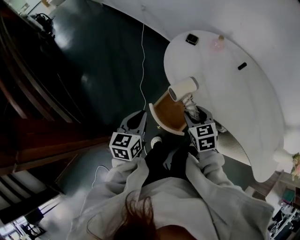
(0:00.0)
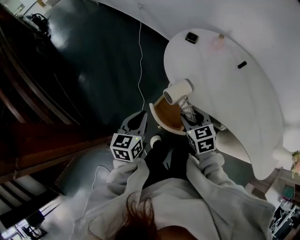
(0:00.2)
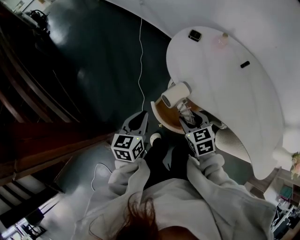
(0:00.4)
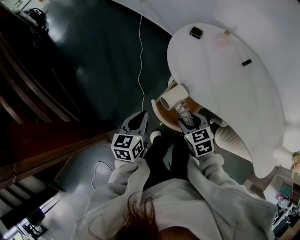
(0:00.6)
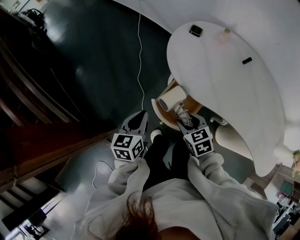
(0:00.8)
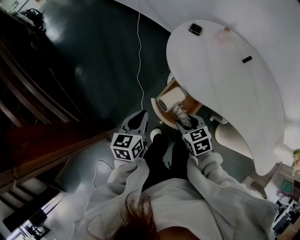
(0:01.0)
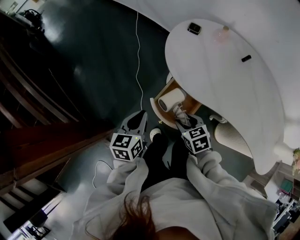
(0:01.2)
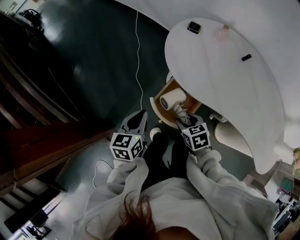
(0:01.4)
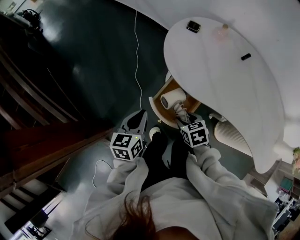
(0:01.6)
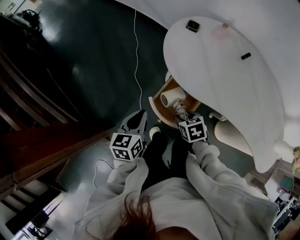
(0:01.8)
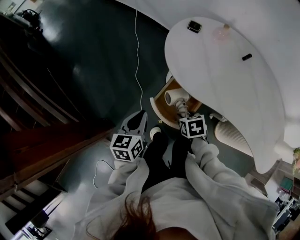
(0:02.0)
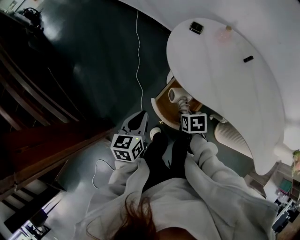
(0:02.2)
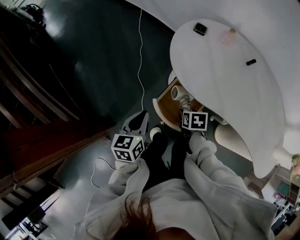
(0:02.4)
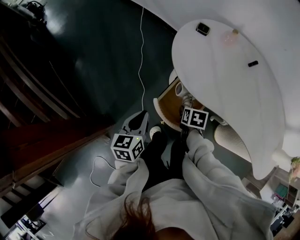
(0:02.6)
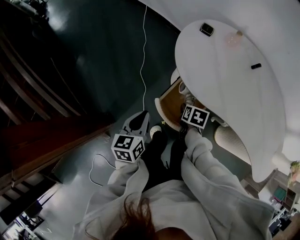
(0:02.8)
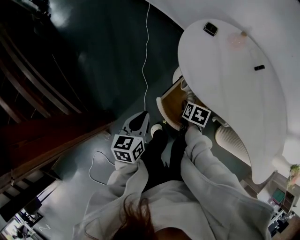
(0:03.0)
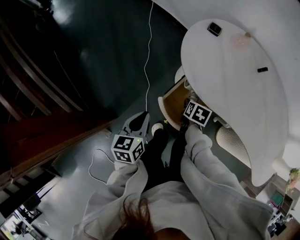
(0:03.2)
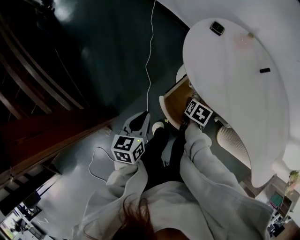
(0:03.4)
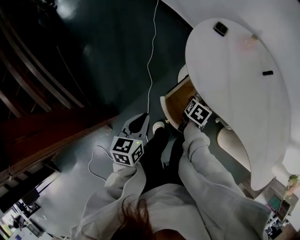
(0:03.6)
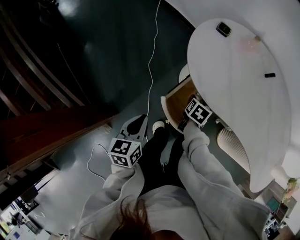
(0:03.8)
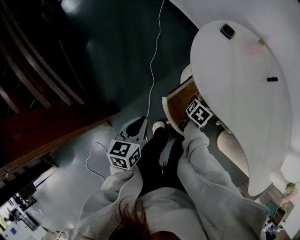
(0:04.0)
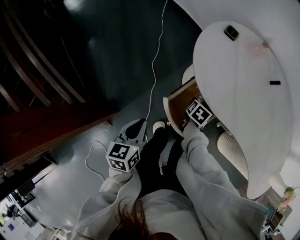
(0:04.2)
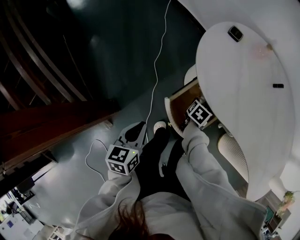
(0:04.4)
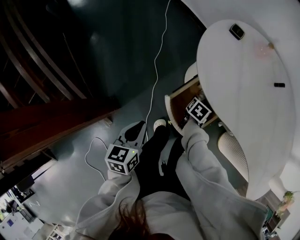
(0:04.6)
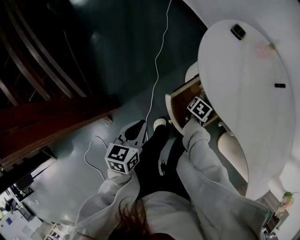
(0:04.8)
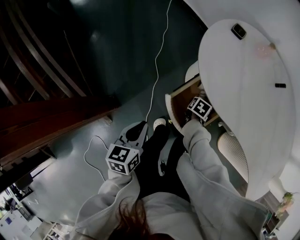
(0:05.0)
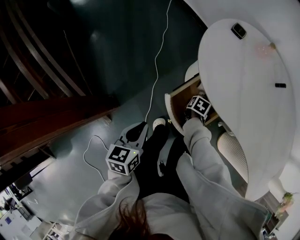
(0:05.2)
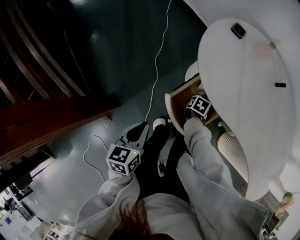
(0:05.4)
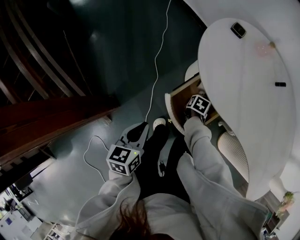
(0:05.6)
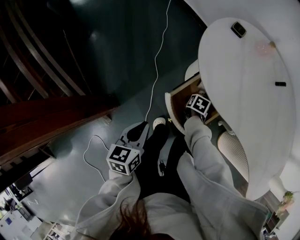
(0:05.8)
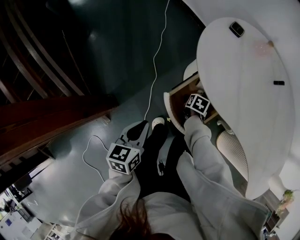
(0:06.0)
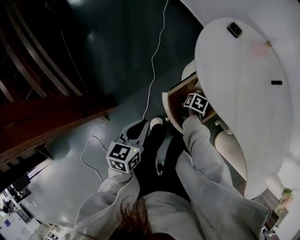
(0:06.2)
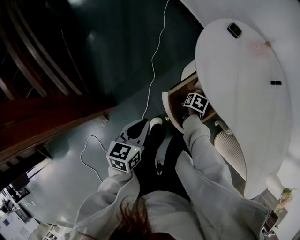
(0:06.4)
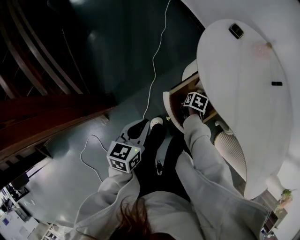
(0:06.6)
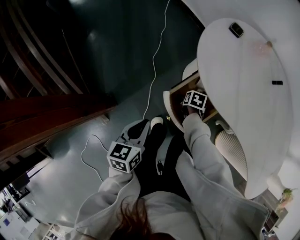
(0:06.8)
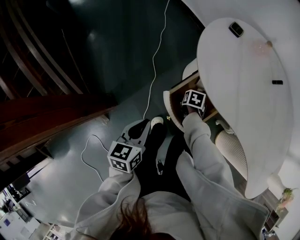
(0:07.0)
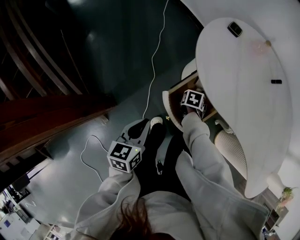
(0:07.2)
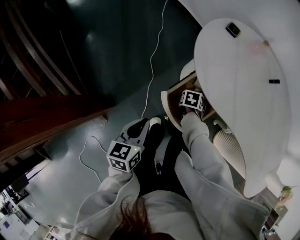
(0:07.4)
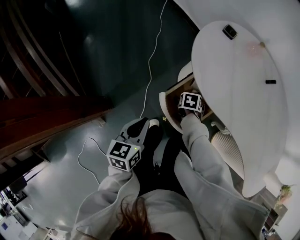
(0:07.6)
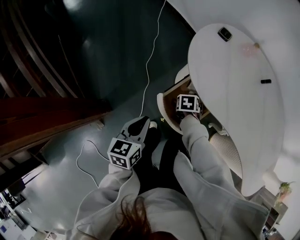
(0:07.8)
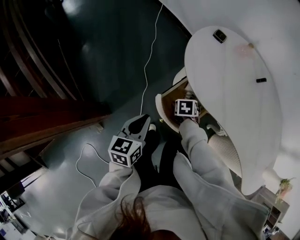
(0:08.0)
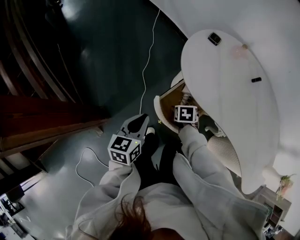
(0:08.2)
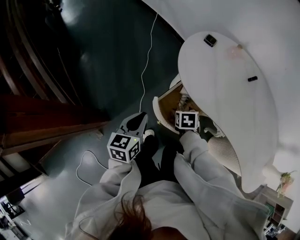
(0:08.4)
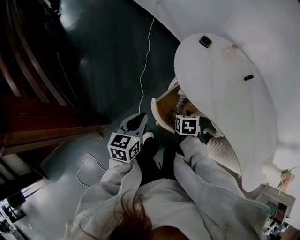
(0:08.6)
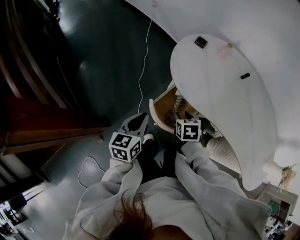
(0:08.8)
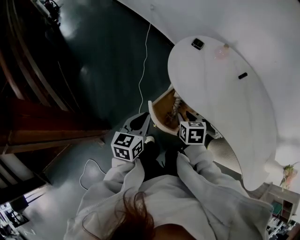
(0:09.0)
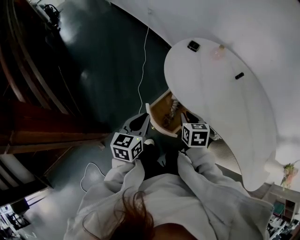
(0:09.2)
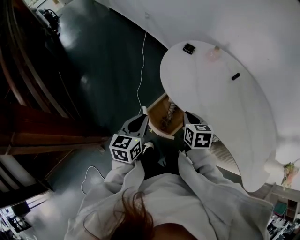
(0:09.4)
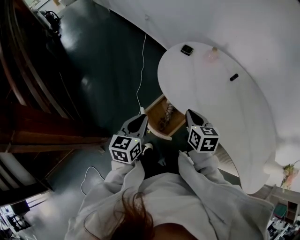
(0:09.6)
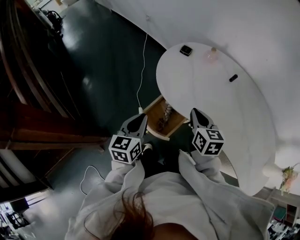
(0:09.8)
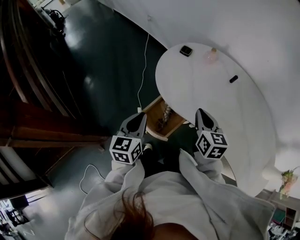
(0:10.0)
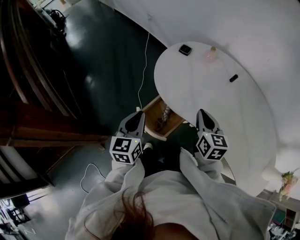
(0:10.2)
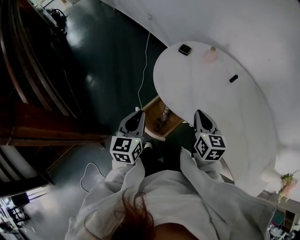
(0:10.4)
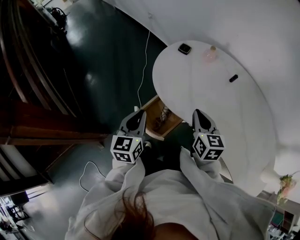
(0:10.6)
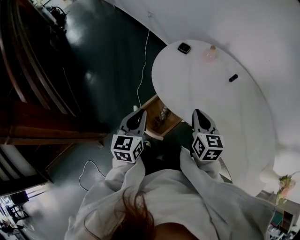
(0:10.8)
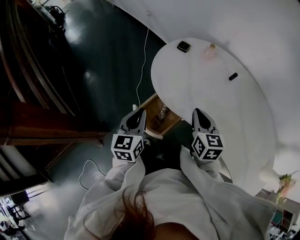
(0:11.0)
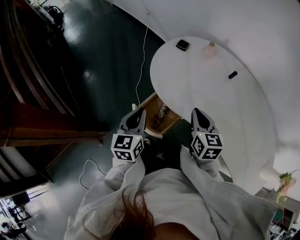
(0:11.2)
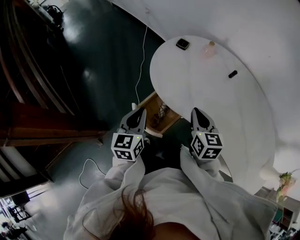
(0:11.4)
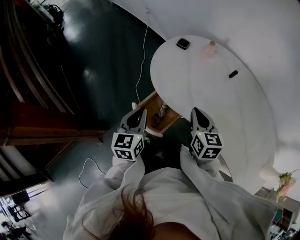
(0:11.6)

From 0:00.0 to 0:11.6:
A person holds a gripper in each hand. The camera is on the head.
From 0:00.0 to 0:01.4: The right gripper heads downward, covering roughly 10 cm.
From 0:01.4 to 0:02.8: The right gripper travels forward and downward by approximately 10 cm, and changes its angle by roughly 40 degrees.
From 0:02.8 to 0:04.4: The left gripper ends up some 5 cm from where it was. Meanwhile the right gripper is displaced downward and forward by approximately 10 cm.
From 0:04.4 to 0:05.8: The right gripper moves downward, approximately 5 cm.
From 0:05.8 to 0:07.2: The right gripper opens.
From 0:07.2 to 0:08.8: The left gripper goes approximately 5 cm upward, while the right gripper heads upward, covering approximately 20 cm, changes its angle by some 20 degrees, and closes.
From 0:08.8 to 0:10.2: The left gripper heads to the right and upward, covering some 10 cm. The right gripper heads upward and to the right, covering some 20 cm, and tilts its fingers roughly 30 degrees upward.
From 0:10.2 to 0:11.6: The grippers make only small movements.

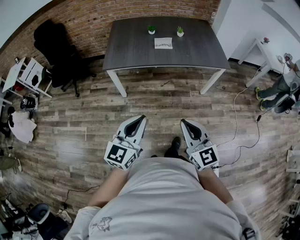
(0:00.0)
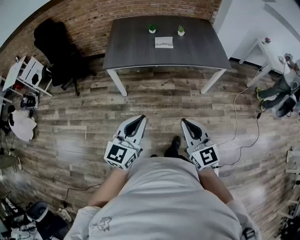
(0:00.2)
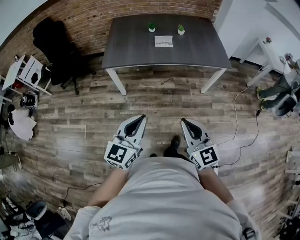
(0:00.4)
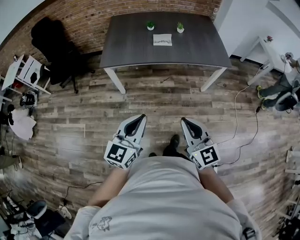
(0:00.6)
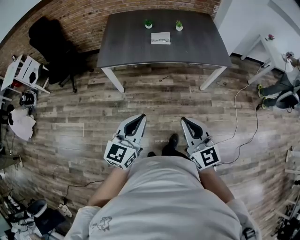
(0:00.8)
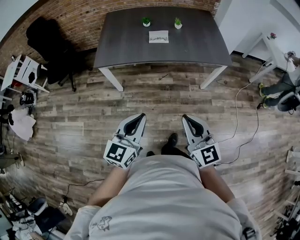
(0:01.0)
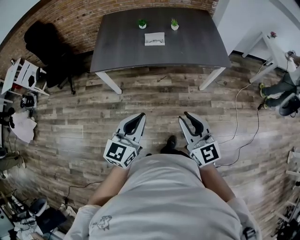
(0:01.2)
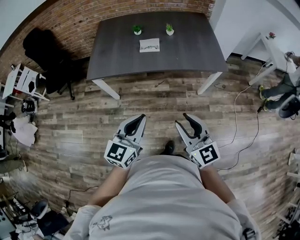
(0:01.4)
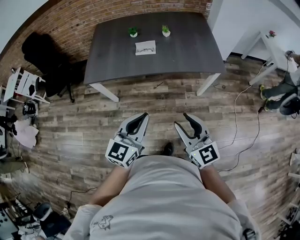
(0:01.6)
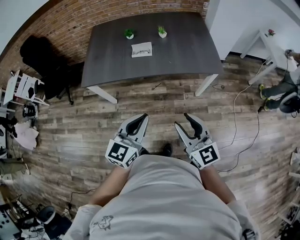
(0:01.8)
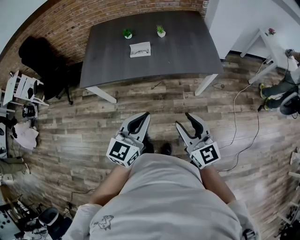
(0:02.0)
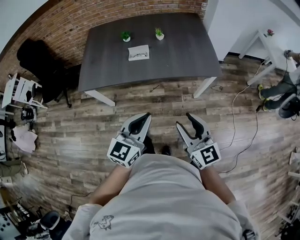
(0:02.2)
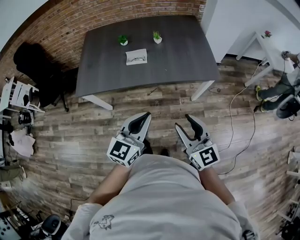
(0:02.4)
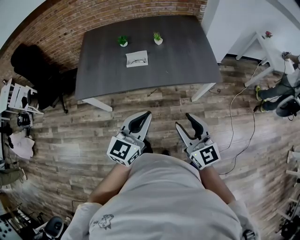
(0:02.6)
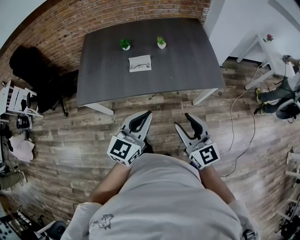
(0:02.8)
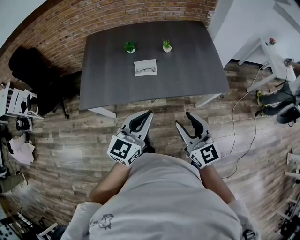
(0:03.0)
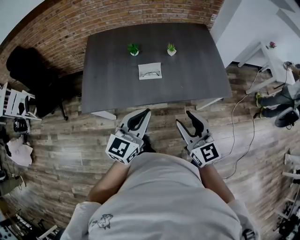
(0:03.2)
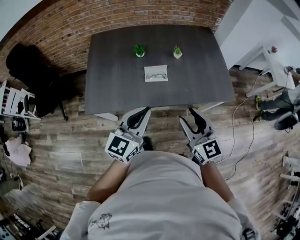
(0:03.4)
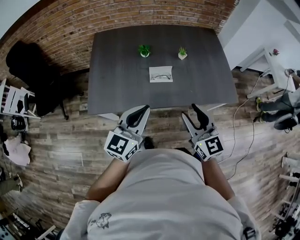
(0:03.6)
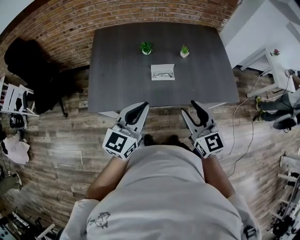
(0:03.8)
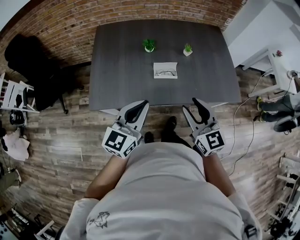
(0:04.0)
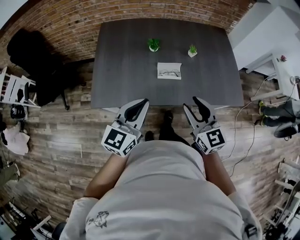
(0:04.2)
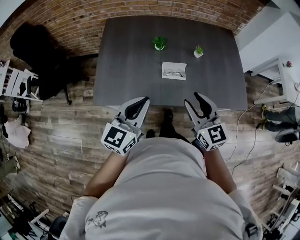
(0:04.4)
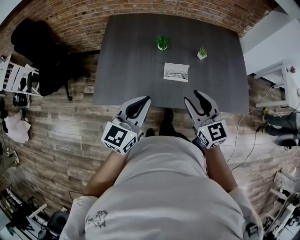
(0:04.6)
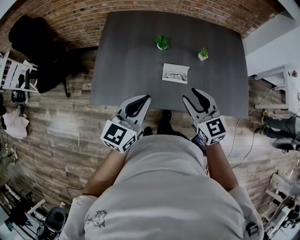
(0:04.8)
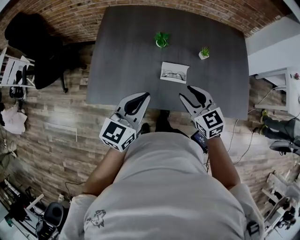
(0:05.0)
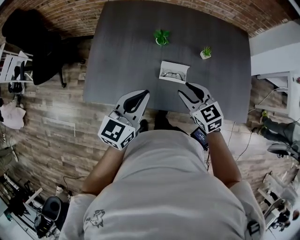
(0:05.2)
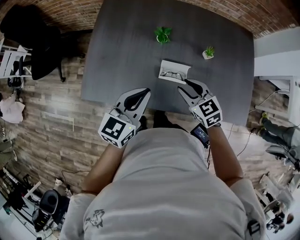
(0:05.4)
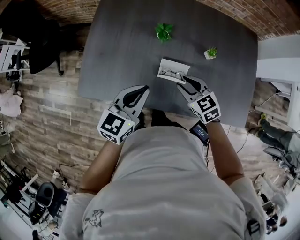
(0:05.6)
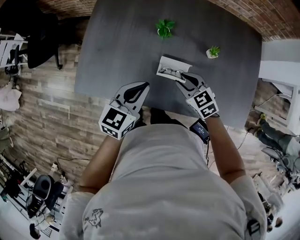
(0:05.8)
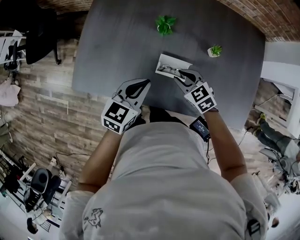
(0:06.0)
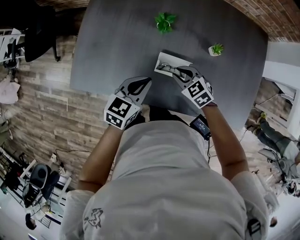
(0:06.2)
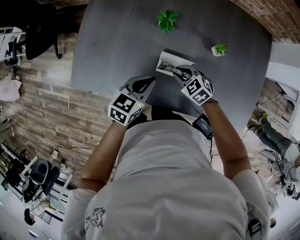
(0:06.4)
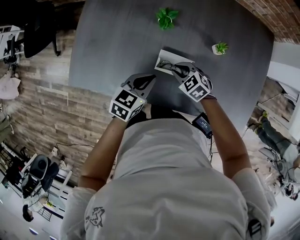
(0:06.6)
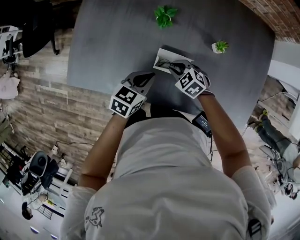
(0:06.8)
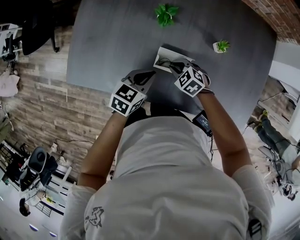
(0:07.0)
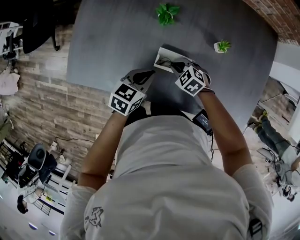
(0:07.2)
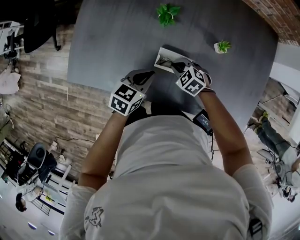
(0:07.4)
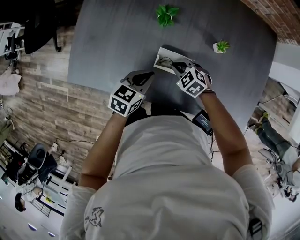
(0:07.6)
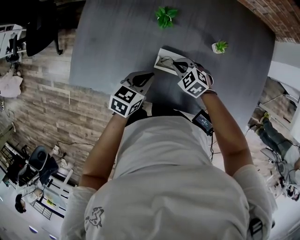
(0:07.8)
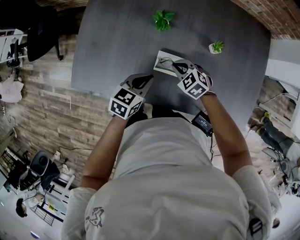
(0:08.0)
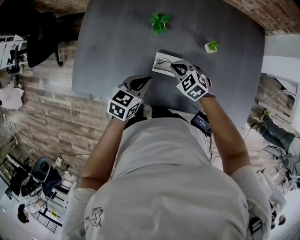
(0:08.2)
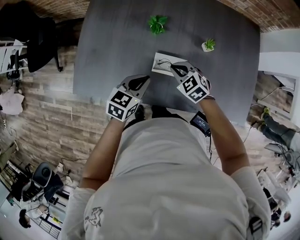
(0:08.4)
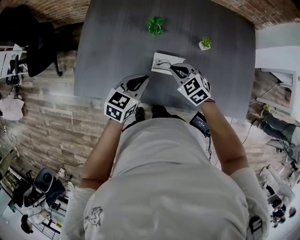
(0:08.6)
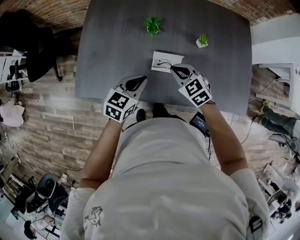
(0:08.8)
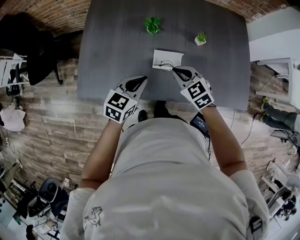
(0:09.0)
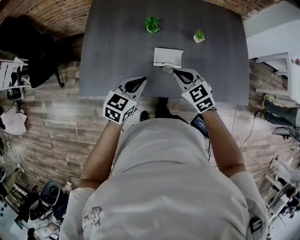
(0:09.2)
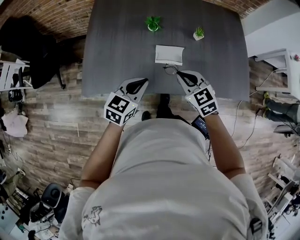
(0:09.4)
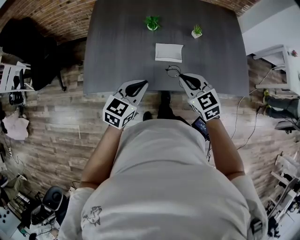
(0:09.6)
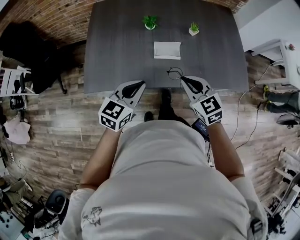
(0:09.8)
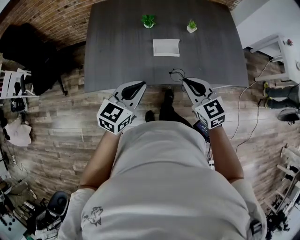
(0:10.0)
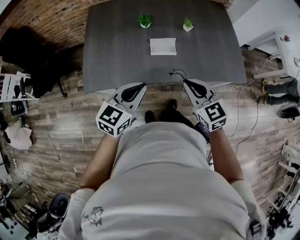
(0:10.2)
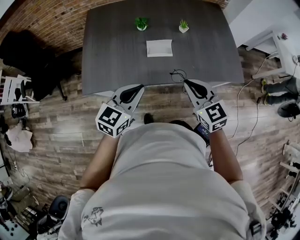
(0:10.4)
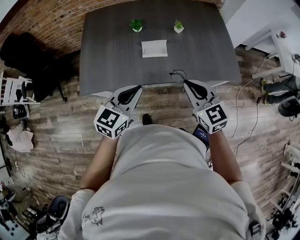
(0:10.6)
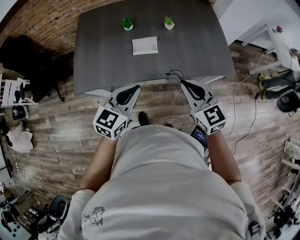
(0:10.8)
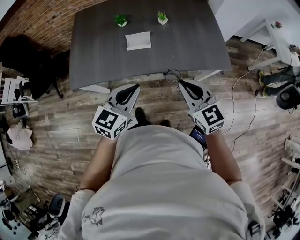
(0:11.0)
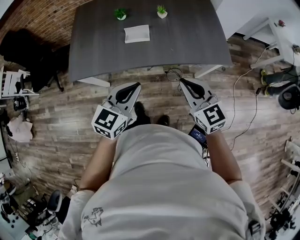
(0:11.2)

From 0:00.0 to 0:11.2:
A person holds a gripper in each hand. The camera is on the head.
From 0:00.0 to 0:01.6: The left gripper shifts some 25 cm to the right and forward. Meanwhile the right gripper goes roughly 25 cm forward and to the right, and opens its fingers.
From 0:01.6 to 0:03.2: Both grippers move forward, roughly 25 cm.
From 0:03.2 to 0:04.8: Both grippers travel together forward and to the left, some 20 cm.
From 0:04.8 to 0:06.4: The right gripper goes approximately 30 cm downward and forward, and tips its fingers downward by some 30 degrees; the left gripper heads downward, forward and to the right, covering approximately 25 cm, and rotates some 30 degrees.
From 0:06.4 to 0:08.0: There are only small adjustments of the grippers.
From 0:08.0 to 0:09.6: The right gripper heads upward and backward, covering some 25 cm, and turns by roughly 40 degrees. The left gripper travels backward, upward and to the left by approximately 20 cm, and rotates about 20 degrees.
From 0:09.6 to 0:11.2: The two grippers go roughly 25 cm to the right, backward and upward.

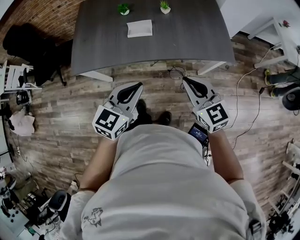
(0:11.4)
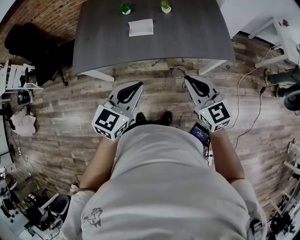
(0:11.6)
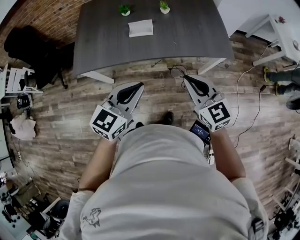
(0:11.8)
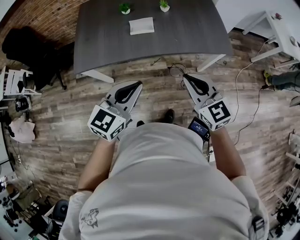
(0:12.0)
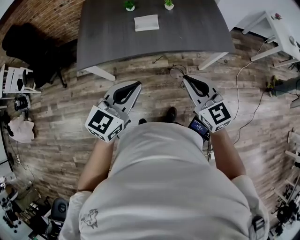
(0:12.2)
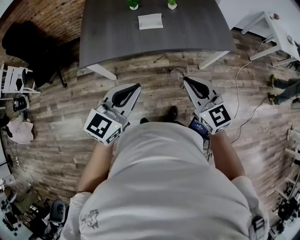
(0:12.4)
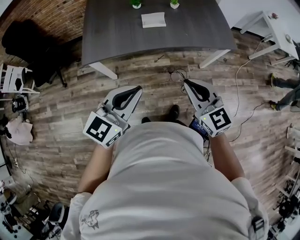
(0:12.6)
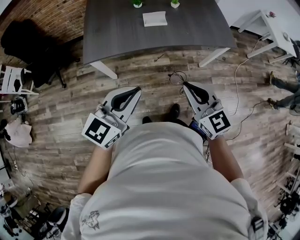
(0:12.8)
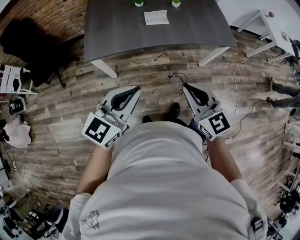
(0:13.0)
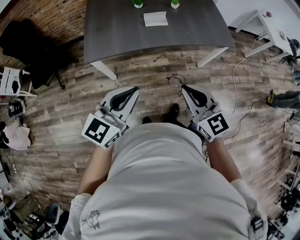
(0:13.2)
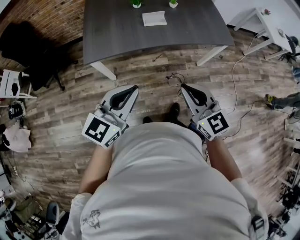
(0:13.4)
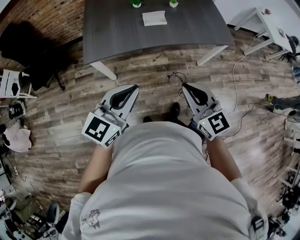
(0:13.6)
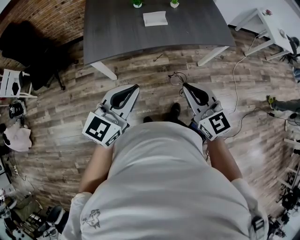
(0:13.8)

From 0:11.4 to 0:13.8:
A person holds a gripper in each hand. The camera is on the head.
From 0:11.4 to 0:12.6: The right gripper is displaced to the left and backward by roughly 20 cm, while the left gripper travels to the left, backward and upward by some 20 cm.
From 0:12.6 to 0:13.8: The right gripper ends up some 5 cm from where it was; the left gripper heads to the left, covering about 5 cm.
